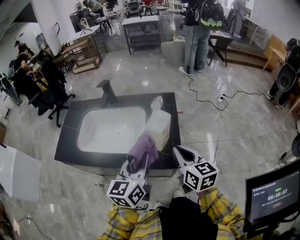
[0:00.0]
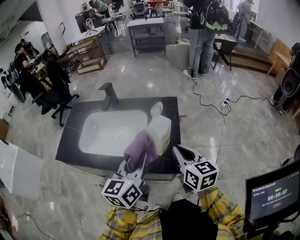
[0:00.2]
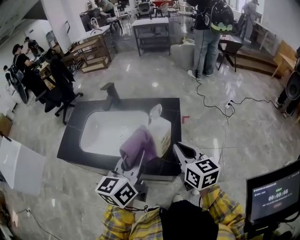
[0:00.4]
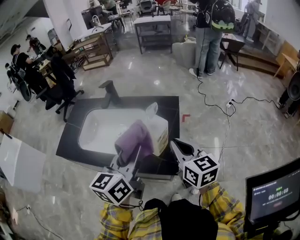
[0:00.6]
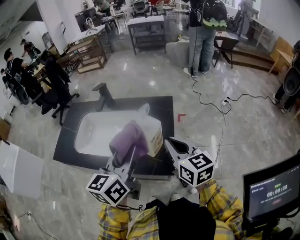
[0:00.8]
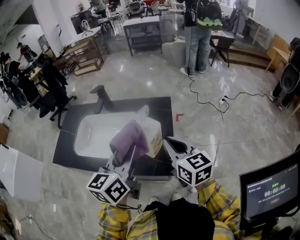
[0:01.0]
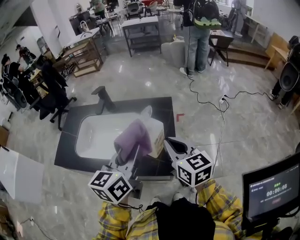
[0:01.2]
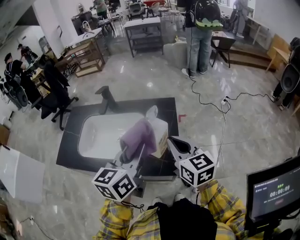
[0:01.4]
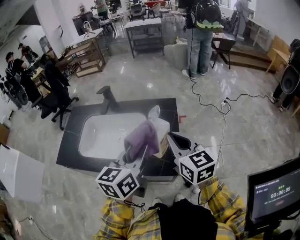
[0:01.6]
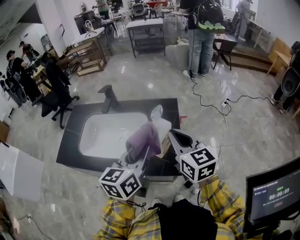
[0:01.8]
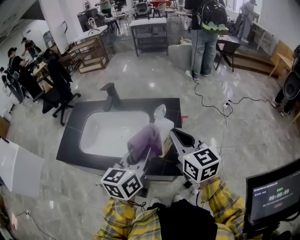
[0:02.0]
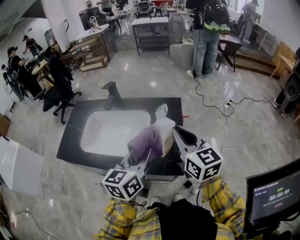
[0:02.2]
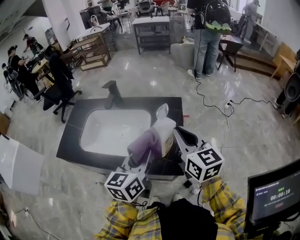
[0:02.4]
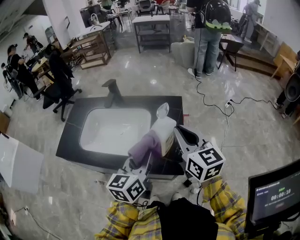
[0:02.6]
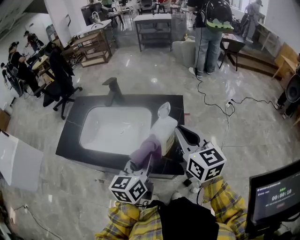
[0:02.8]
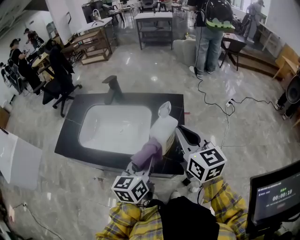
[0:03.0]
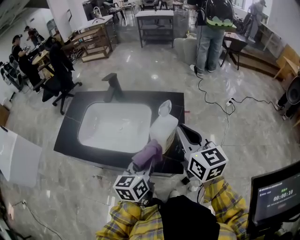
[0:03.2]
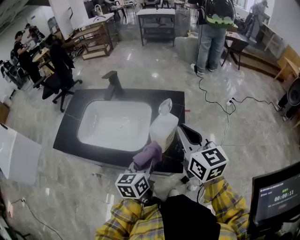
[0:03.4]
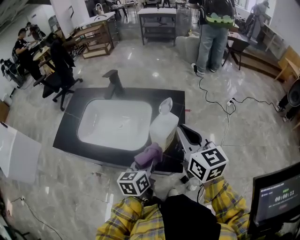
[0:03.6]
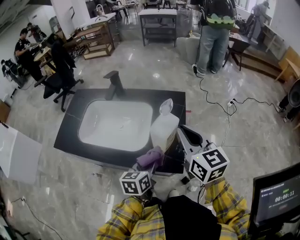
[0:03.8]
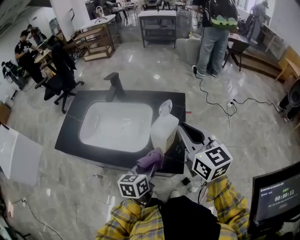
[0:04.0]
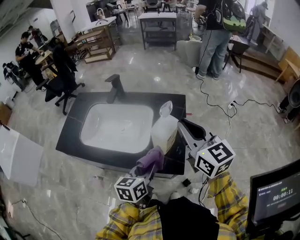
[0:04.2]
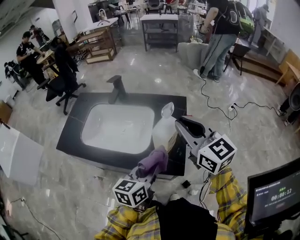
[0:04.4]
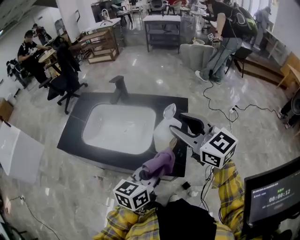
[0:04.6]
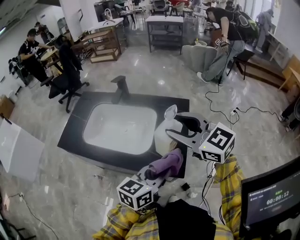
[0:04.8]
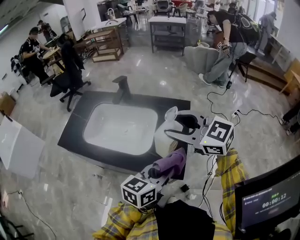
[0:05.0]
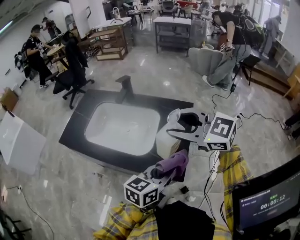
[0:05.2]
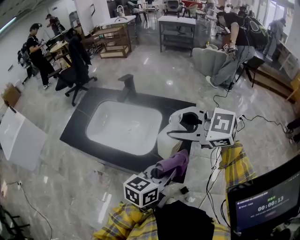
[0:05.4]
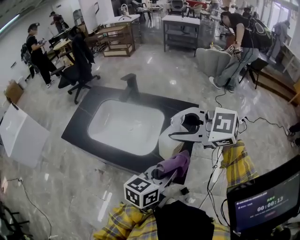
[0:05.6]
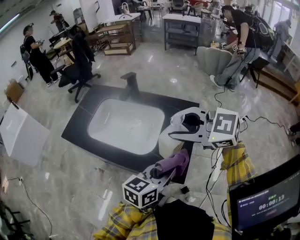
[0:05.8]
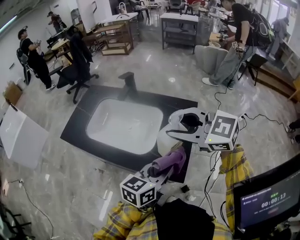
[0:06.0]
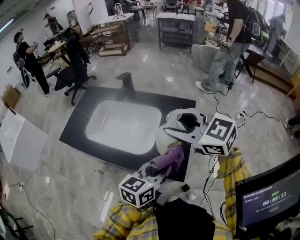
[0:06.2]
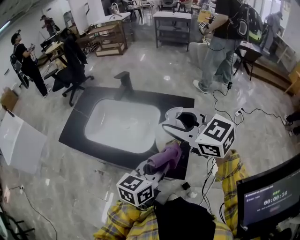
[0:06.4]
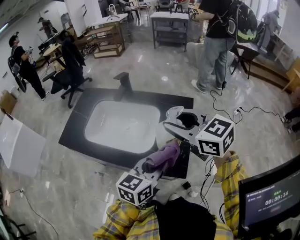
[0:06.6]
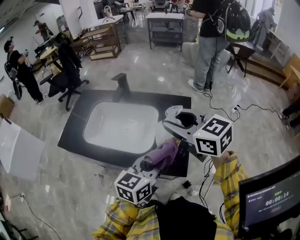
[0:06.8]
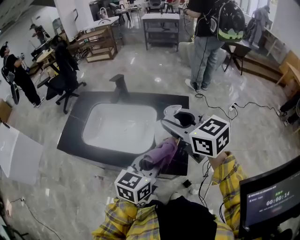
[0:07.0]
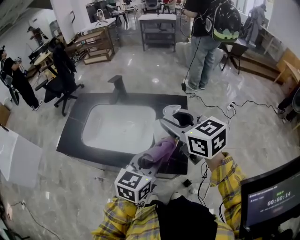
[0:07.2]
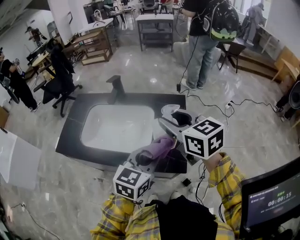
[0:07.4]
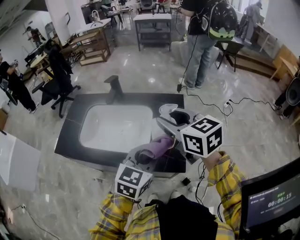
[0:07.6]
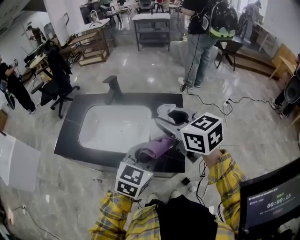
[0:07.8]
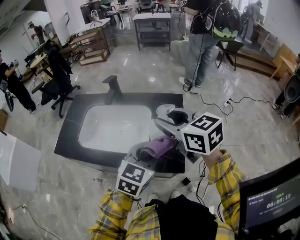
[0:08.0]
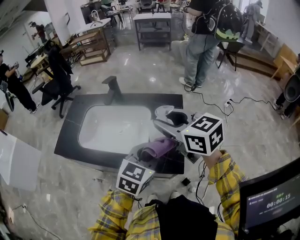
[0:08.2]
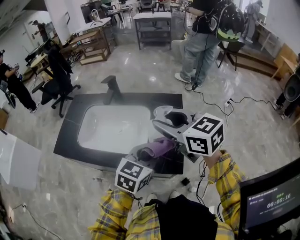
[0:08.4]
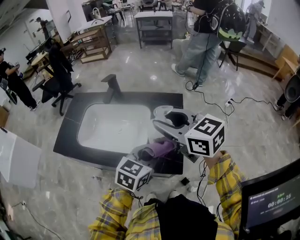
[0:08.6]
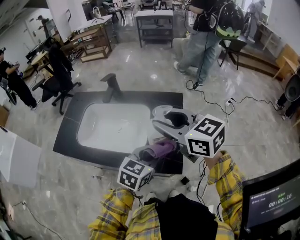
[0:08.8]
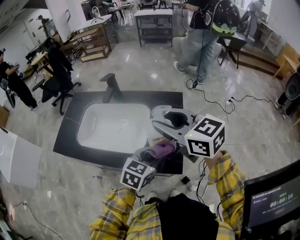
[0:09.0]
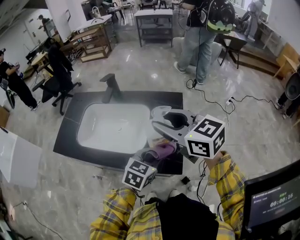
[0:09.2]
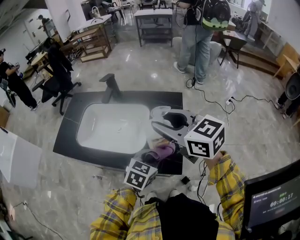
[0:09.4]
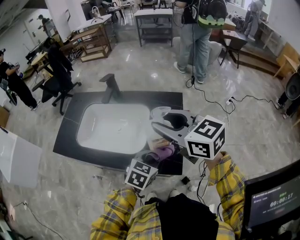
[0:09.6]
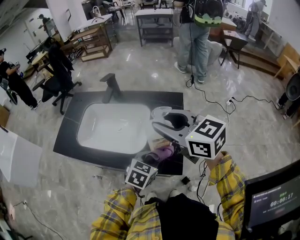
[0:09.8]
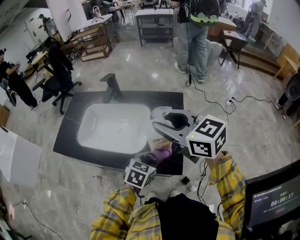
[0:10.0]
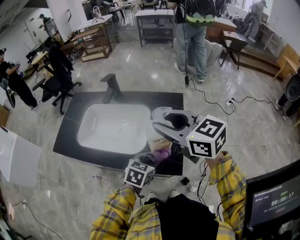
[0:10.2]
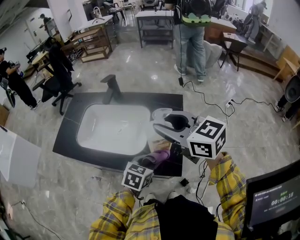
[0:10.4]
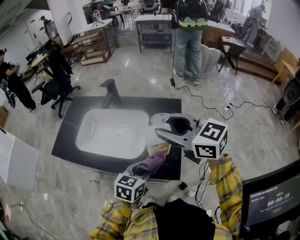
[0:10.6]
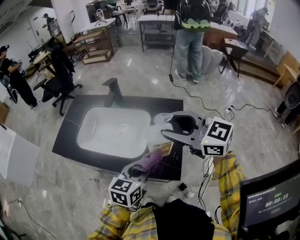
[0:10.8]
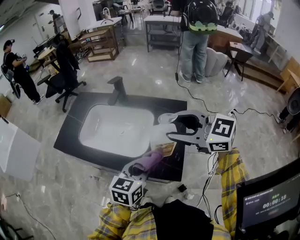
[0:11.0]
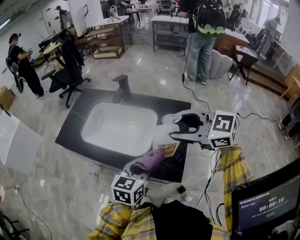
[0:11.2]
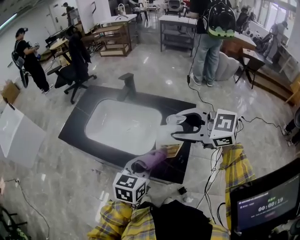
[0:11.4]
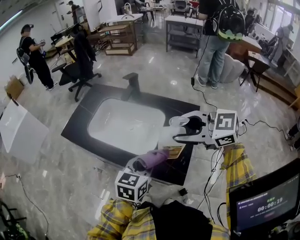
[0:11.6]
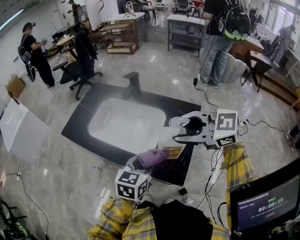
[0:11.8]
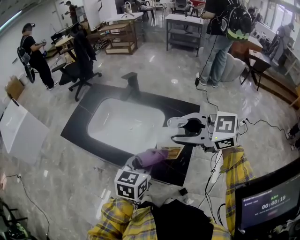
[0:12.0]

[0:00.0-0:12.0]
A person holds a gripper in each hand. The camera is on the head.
0:00.0 to 0:01.6: The left gripper ends up some 10 cm from where it was; the right gripper goes about 10 cm upward and forward.
0:01.6 to 0:03.0: The left gripper is displaced downward by some 10 cm.
0:03.0 to 0:04.4: The right gripper shifts by roughly 5 cm. The left gripper goes downward and returns, roughly 10 cm each way.
0:04.4 to 0:06.0: The left gripper moves about 5 cm; the right gripper shifts by roughly 5 cm, rotates roughly 40 degrees, and opens its fingers.
0:06.0 to 0:07.6: The left gripper shifts by roughly 5 cm, and changes its angle by roughly 30 degrees; the right gripper turns by about 50 degrees.
0:07.6 to 0:09.0: The left gripper goes about 10 cm downward.
0:09.0 to 0:10.4: The left gripper goes some 5 cm downward.
0:10.4 to 0:12.0: The right gripper turns by approximately 40 degrees; the left gripper heads upward, covering some 10 cm, and changes its angle by about 30 degrees.

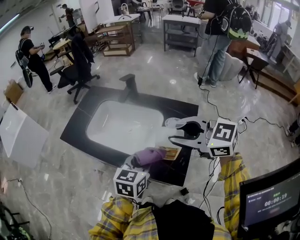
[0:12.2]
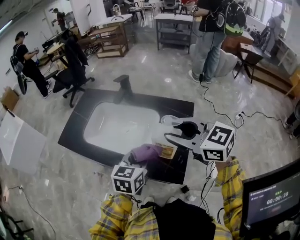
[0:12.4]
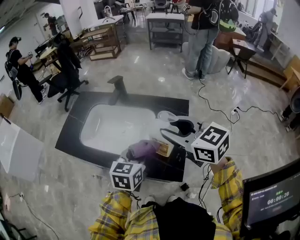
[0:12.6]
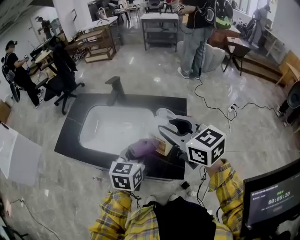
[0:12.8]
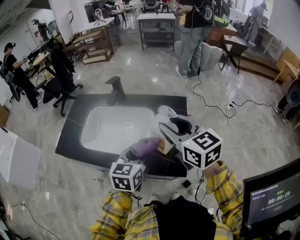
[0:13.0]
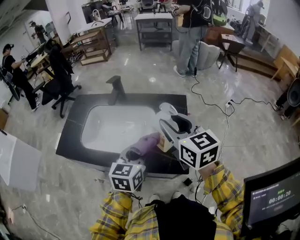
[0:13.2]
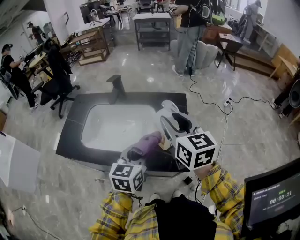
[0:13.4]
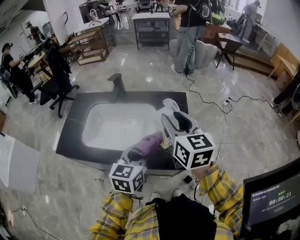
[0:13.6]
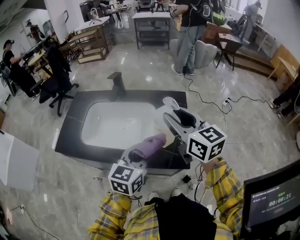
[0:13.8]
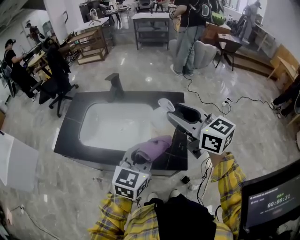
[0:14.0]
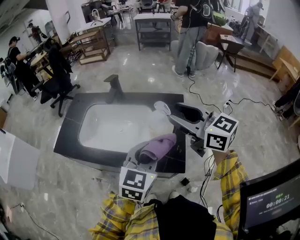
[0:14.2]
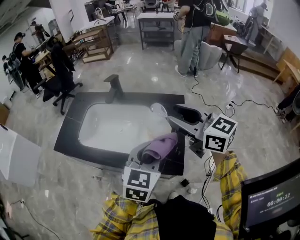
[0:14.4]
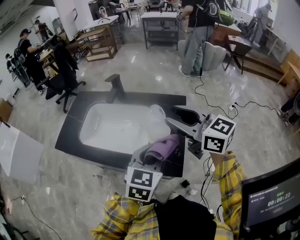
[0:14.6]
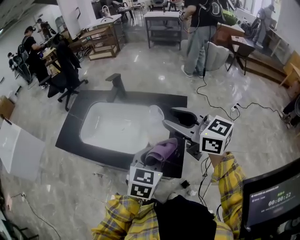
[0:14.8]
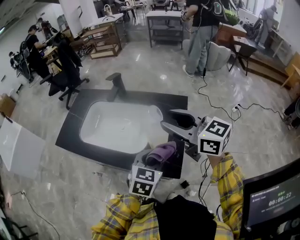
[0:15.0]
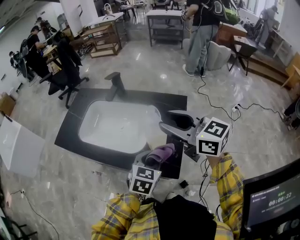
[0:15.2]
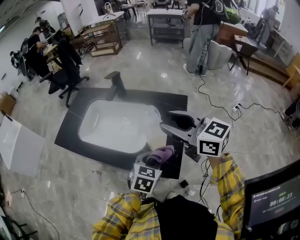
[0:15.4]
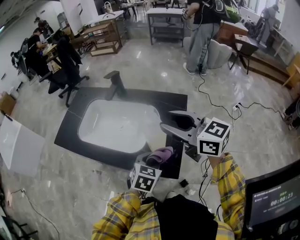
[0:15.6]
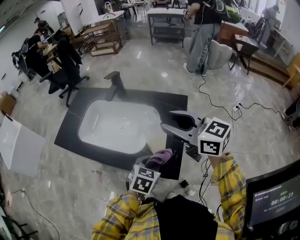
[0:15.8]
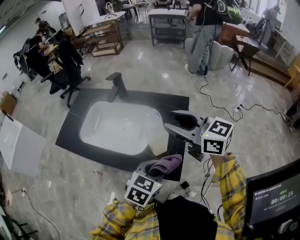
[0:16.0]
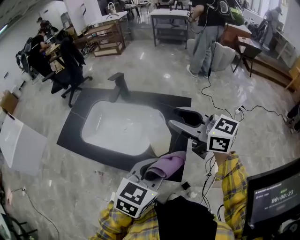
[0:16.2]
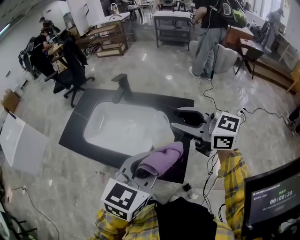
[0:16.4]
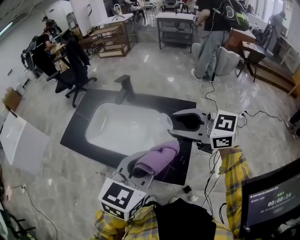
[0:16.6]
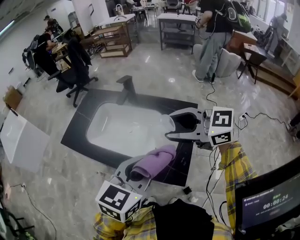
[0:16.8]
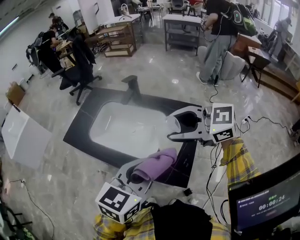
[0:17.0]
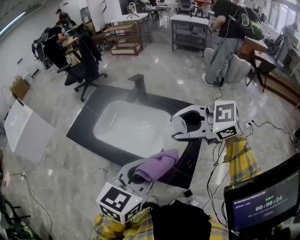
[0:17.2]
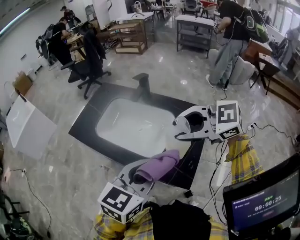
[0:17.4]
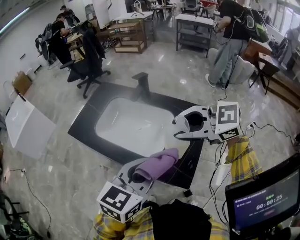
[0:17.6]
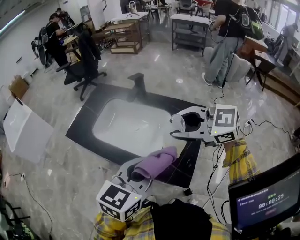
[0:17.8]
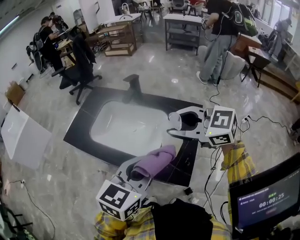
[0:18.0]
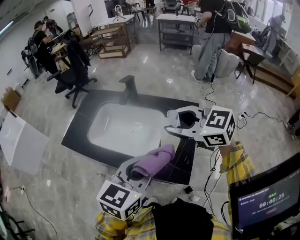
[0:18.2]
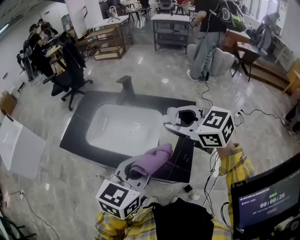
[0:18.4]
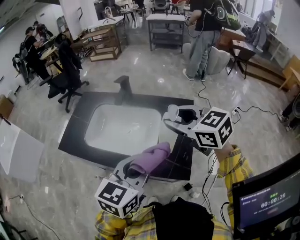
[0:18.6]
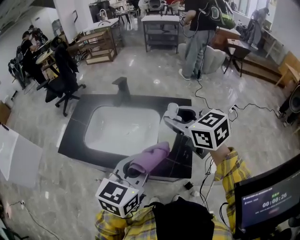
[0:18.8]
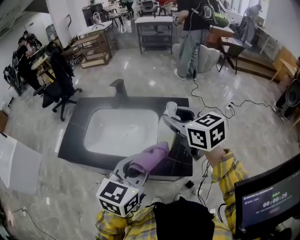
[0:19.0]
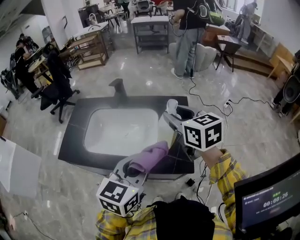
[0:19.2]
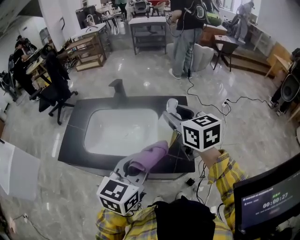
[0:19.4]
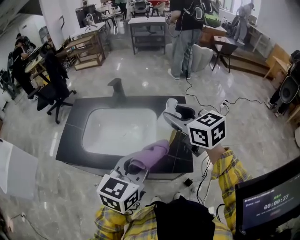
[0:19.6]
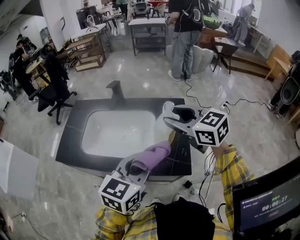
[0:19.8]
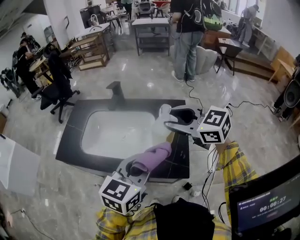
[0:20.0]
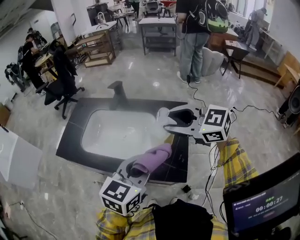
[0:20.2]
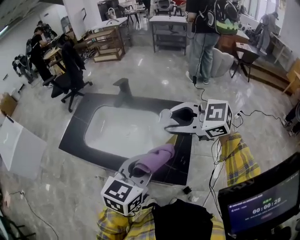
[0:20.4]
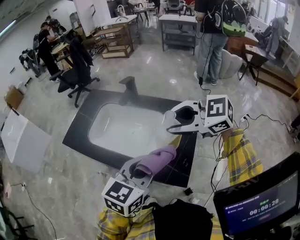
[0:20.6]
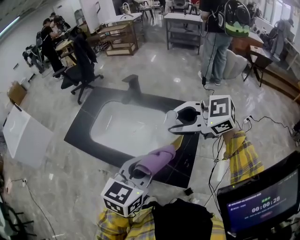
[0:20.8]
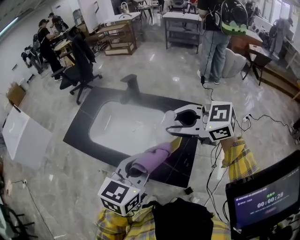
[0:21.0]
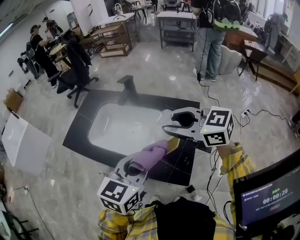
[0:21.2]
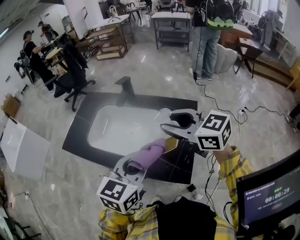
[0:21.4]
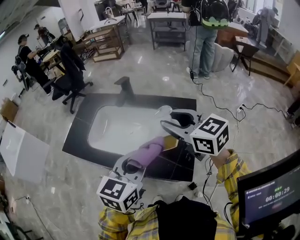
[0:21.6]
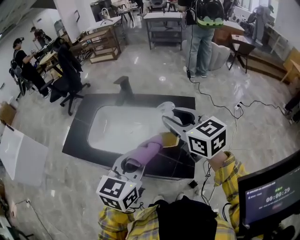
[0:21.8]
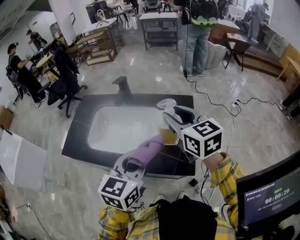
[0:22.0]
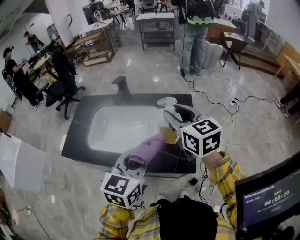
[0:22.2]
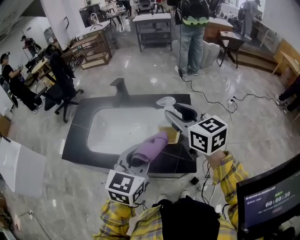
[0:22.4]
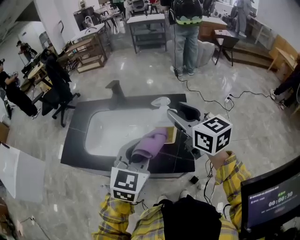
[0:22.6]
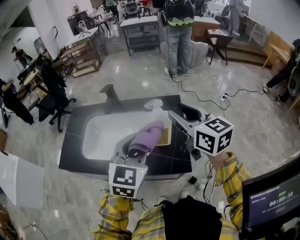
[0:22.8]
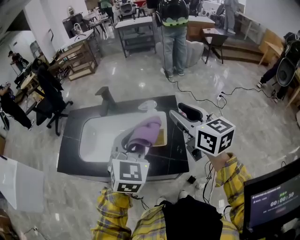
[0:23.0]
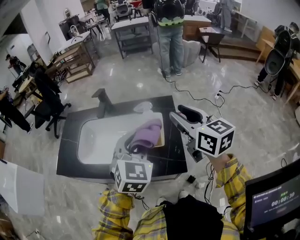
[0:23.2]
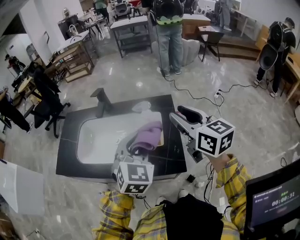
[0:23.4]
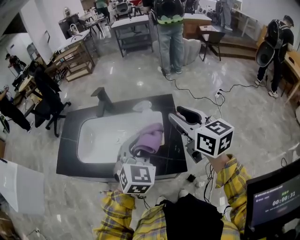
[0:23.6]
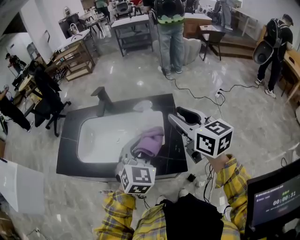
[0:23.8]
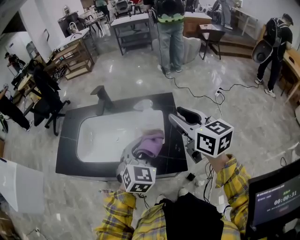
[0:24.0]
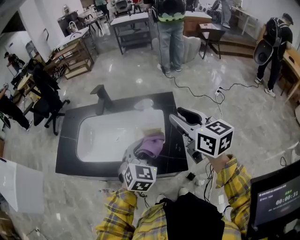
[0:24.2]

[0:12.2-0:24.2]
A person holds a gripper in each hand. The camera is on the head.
0:12.2 to 0:13.8: The right gripper rotates some 50 degrees.
0:13.8 to 0:15.2: The left gripper moves downward and to the right, some 10 cm, and rotates roughly 20 degrees. Meanwhile the right gripper changes its angle by approximately 30 degrees.
0:15.2 to 0:16.6: The left gripper goes approximately 15 cm upward. The right gripper rotates about 20 degrees.
0:18.2 to 0:19.8: The right gripper changes its angle by roughly 30 degrees.
0:19.8 to 0:21.2: The right gripper turns by some 30 degrees.
0:21.2 to 0:22.6: The right gripper rotates roughly 50 degrees.
0:22.6 to 0:24.2: The right gripper is displaced to the right by some 5 cm; the left gripper moves downward, approximately 10 cm.
